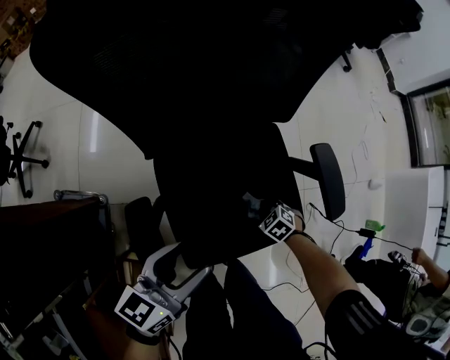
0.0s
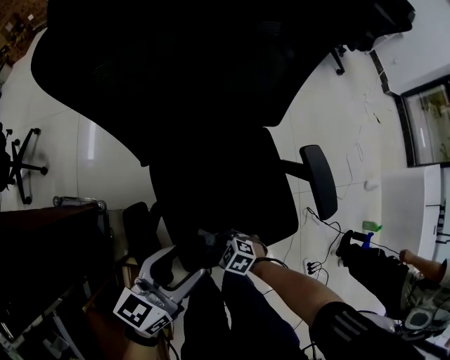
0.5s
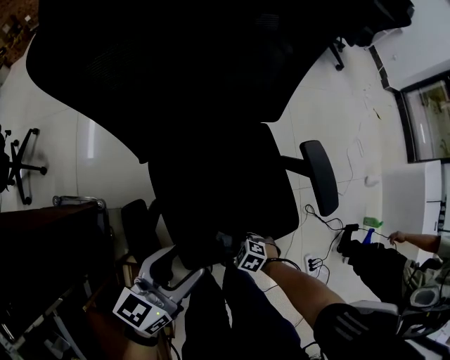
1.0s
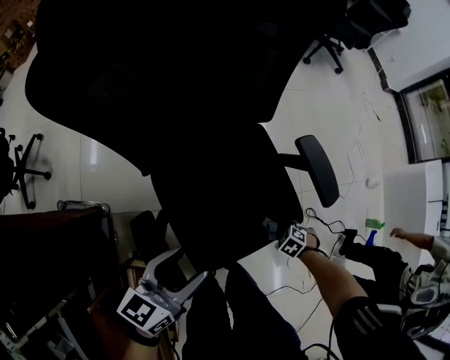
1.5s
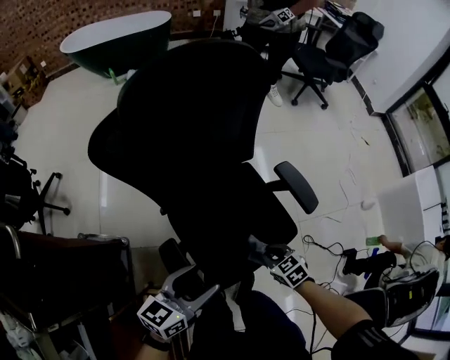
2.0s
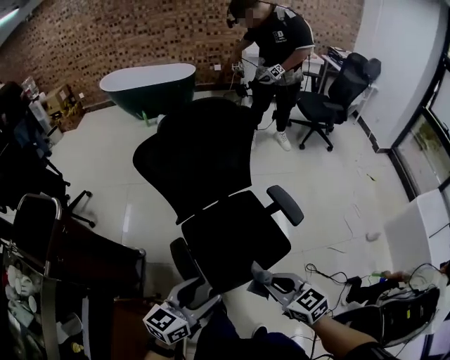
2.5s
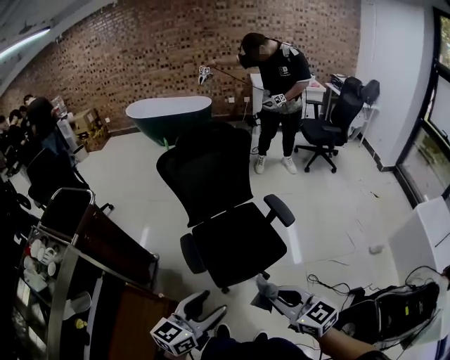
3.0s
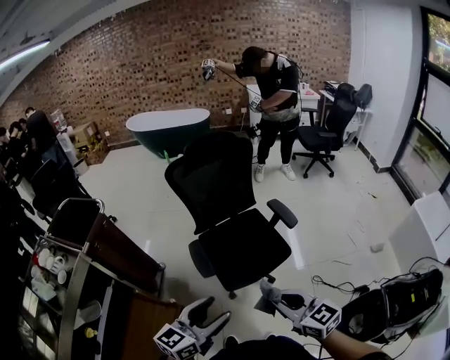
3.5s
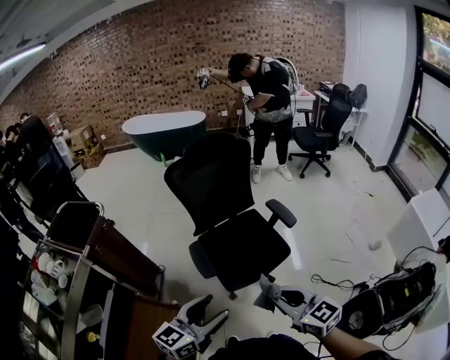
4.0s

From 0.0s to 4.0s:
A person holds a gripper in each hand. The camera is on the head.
From 0.0s to 2.0s: The left gripper is displaced upward by approximately 10 cm. The right gripper is displaced upward by roughly 25 cm, and swivels some 30 degrees.
From 2.0s to 4.0s: The right gripper goes about 60 cm upward, and tilts its fingers about 40 degrees upward. Meanwhile the left gripper moves upward and backward, some 40 cm.

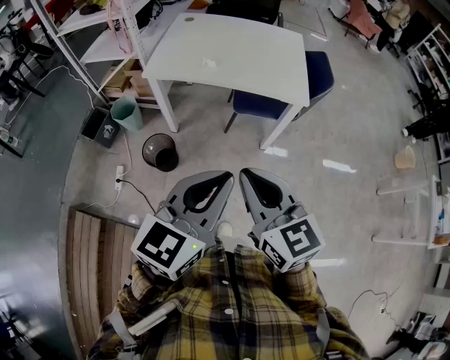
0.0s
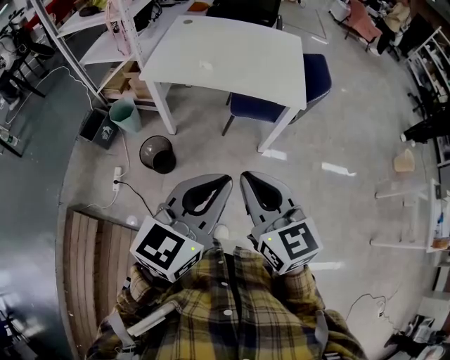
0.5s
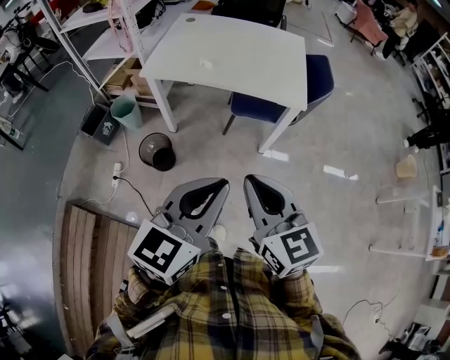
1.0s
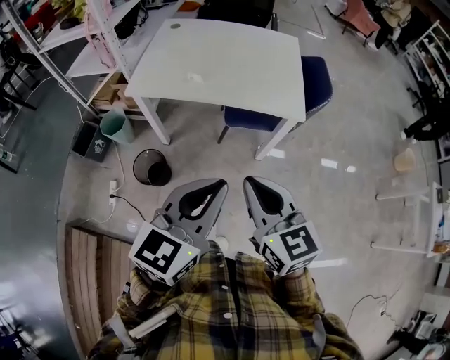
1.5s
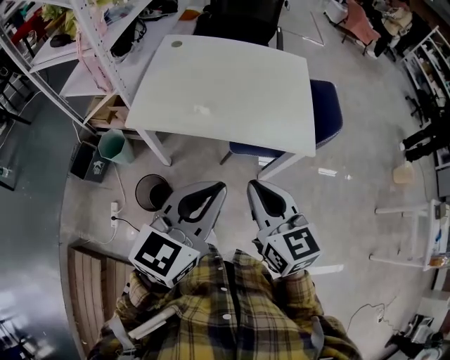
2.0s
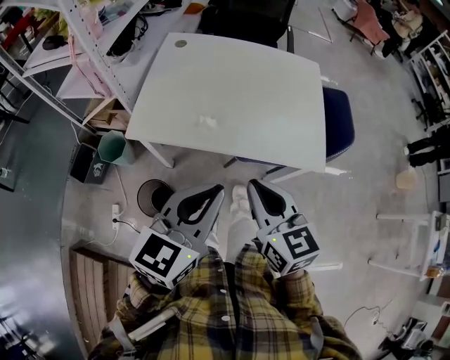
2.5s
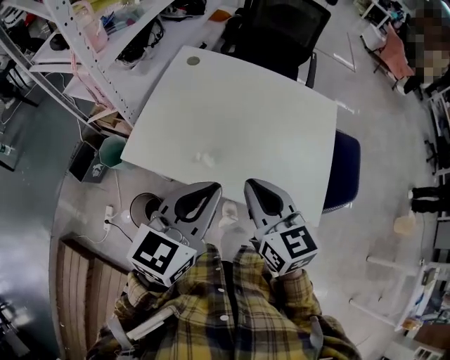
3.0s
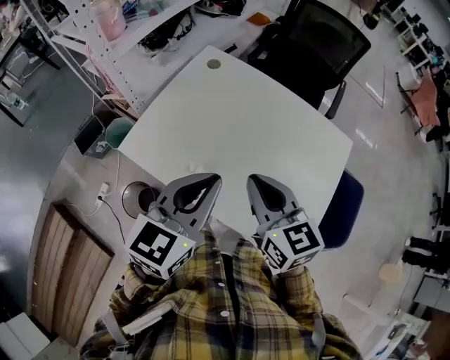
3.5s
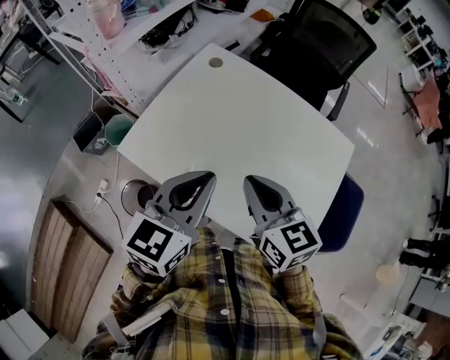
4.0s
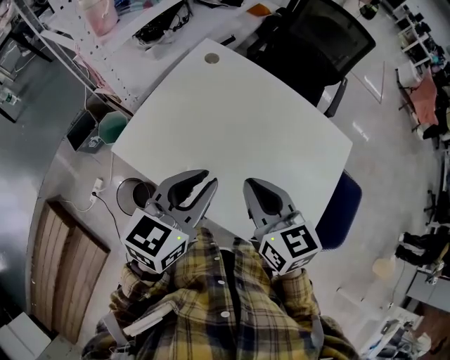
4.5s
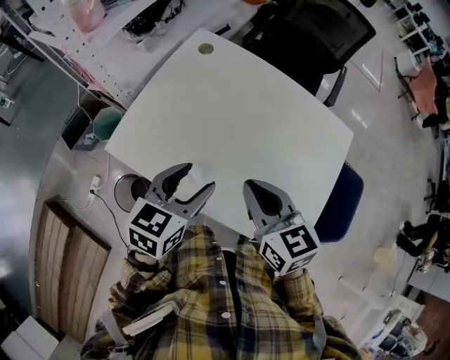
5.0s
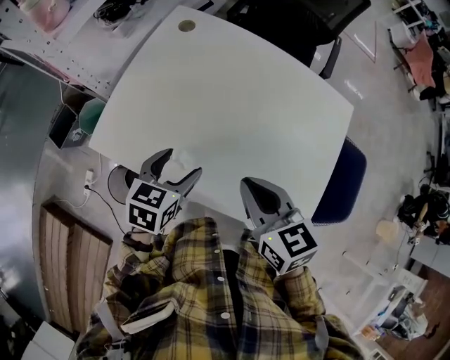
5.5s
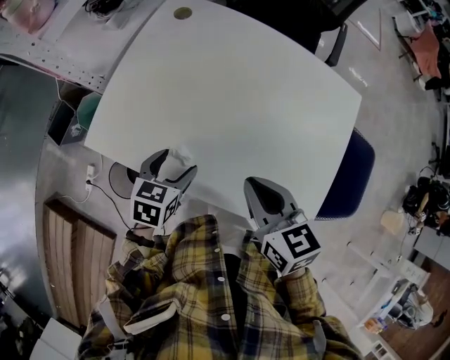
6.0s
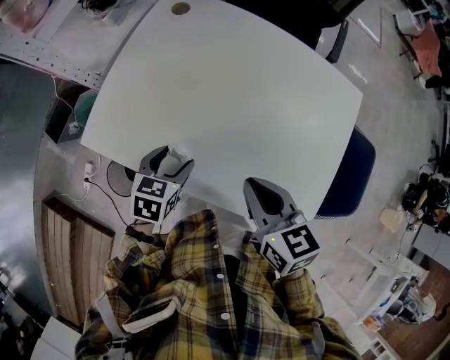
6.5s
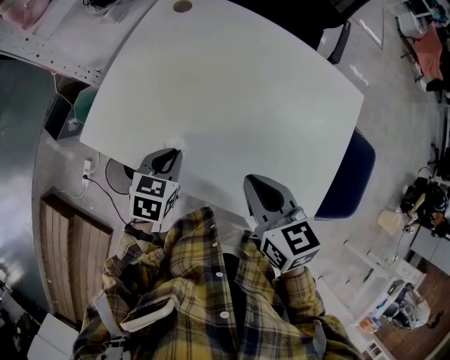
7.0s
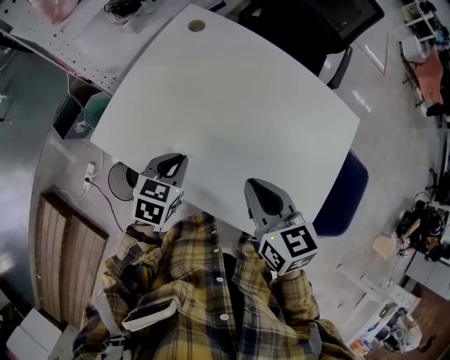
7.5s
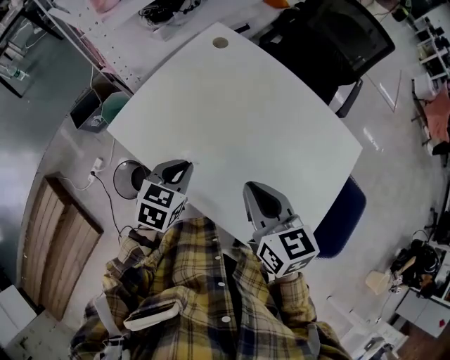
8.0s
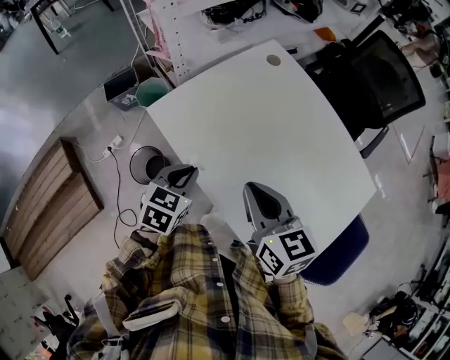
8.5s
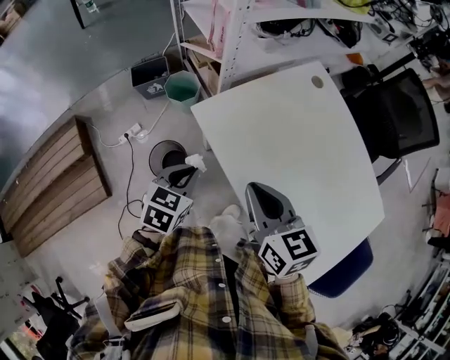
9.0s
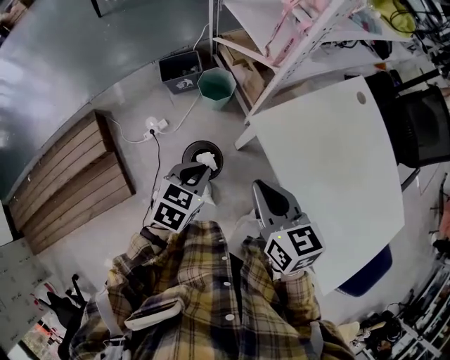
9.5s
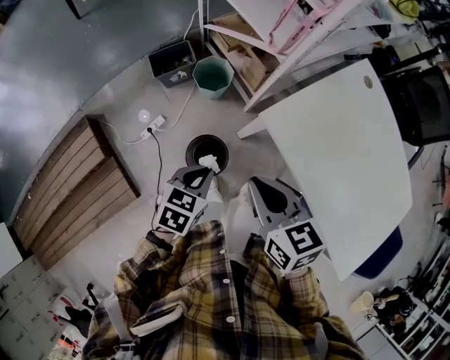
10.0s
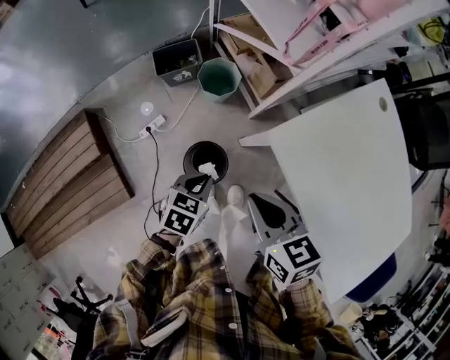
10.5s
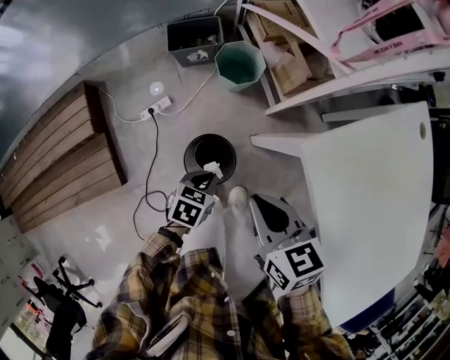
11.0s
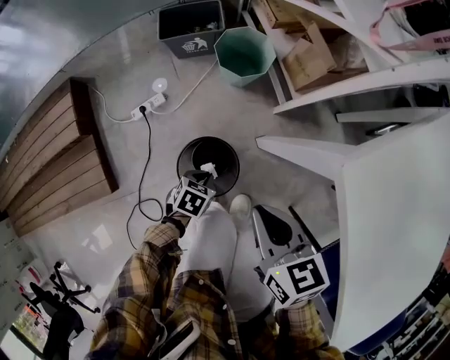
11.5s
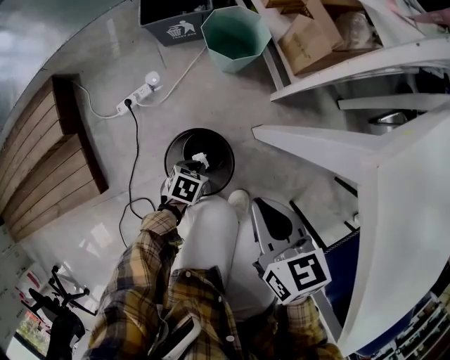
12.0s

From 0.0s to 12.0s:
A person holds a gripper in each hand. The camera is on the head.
From 0.0s to 2.0s: The two grippers go roughly 25 cm forward.
From 2.0s to 4.0s: The left gripper shifts by about 35 cm, and rotates approximately 30 degrees. Meanwhile the right gripper shifts by approximately 35 cm, and rotates some 30 degrees.
From 4.0s to 6.0s: The left gripper is displaced downward by roughly 25 cm, tilts its fingers about 30 degrees downward, and opens; the right gripper shifts some 10 cm downward.
From 6.0s to 8.0s: The left gripper moves upward, about 5 cm, and closes its fingers.
From 8.0s to 10.0s: The two grippers travel together, to the left, roughly 40 cm. The right gripper turns by roughly 20 degrees.
From 10.0s to 12.0s: Both grippers move downward, some 50 cm. The left gripper swivels approximately 30 degrees.

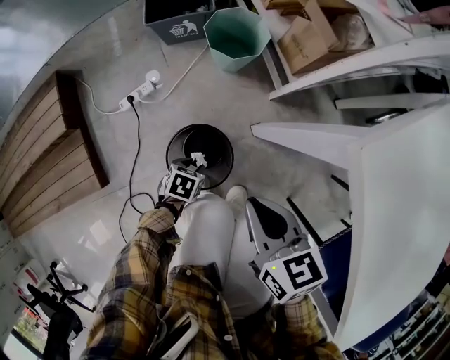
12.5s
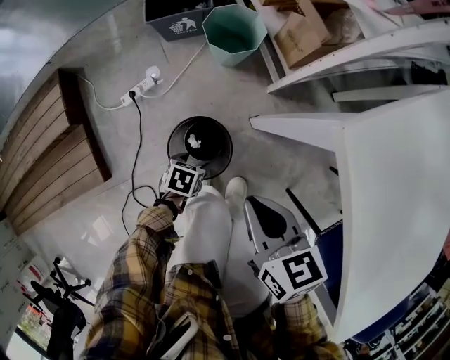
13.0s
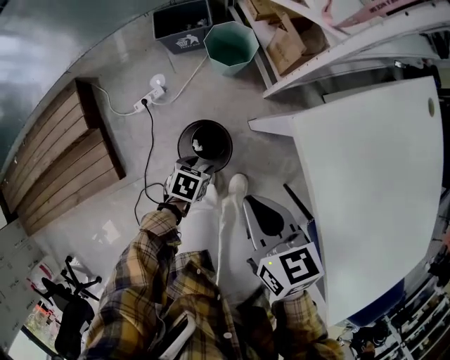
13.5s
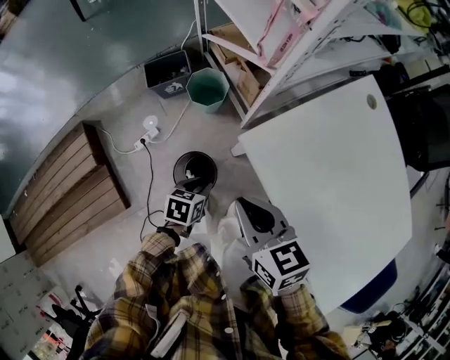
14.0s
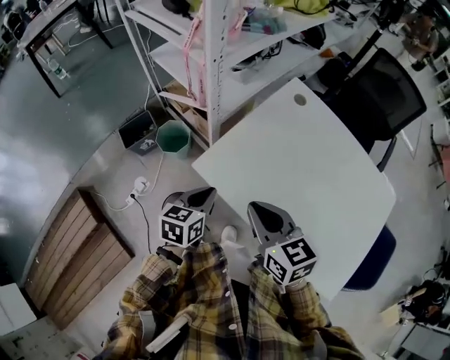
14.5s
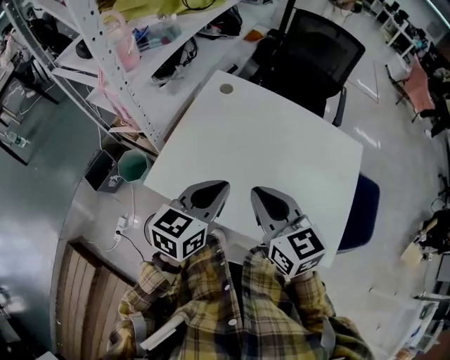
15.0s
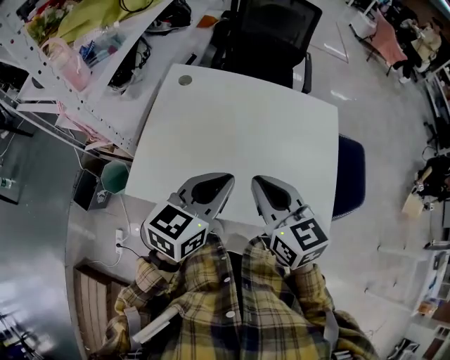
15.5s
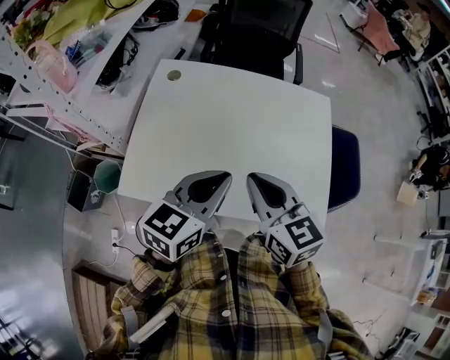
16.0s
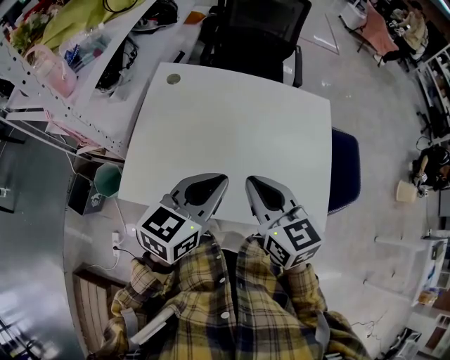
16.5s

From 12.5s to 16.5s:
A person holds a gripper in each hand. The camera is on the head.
From 12.5s to 14.5s: The left gripper shifts roughly 60 cm upward, points its fingers roughly 40 degrees further upward, and opens and closes again, while the right gripper shifts about 40 cm upward and to the right, and changes its angle by about 30 degrees.
From 14.5s to 16.5s: The left gripper shifts by roughly 30 cm, and swivels some 50 degrees, while the right gripper ends up approximately 25 cm from where it was, and changes its angle by roughly 40 degrees.

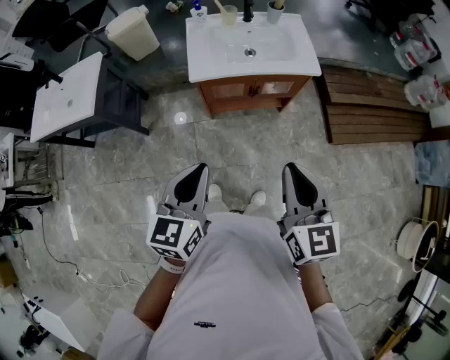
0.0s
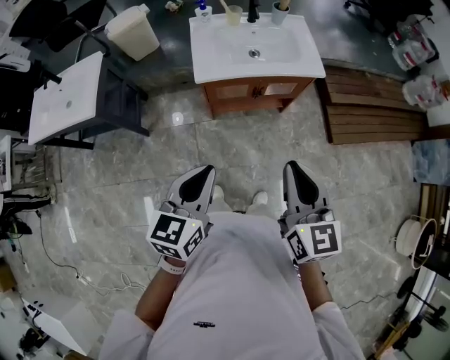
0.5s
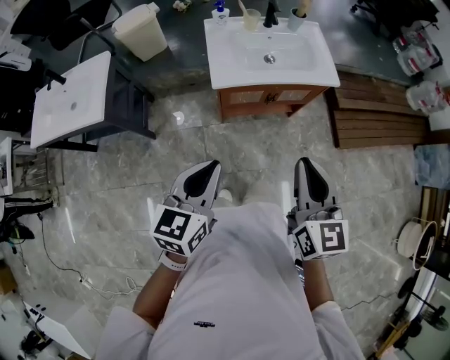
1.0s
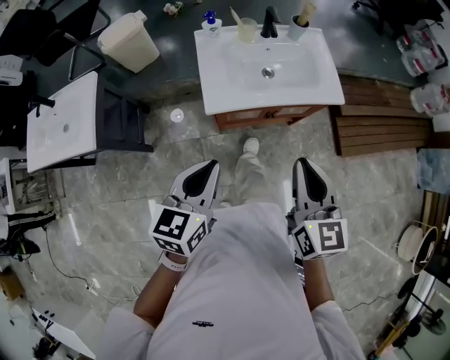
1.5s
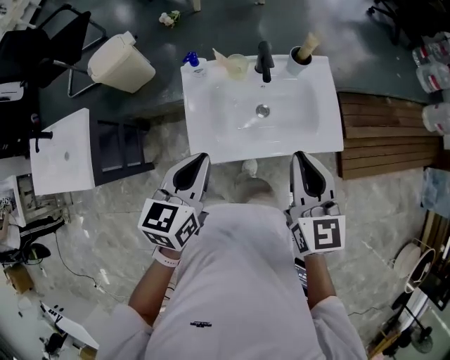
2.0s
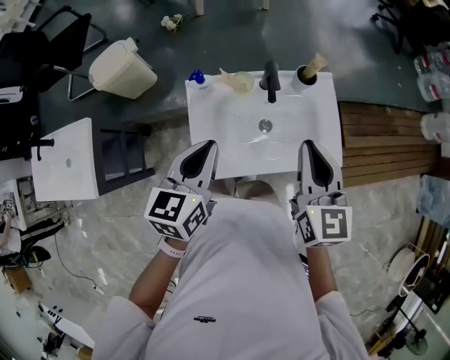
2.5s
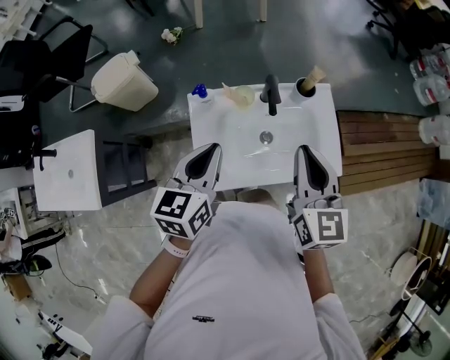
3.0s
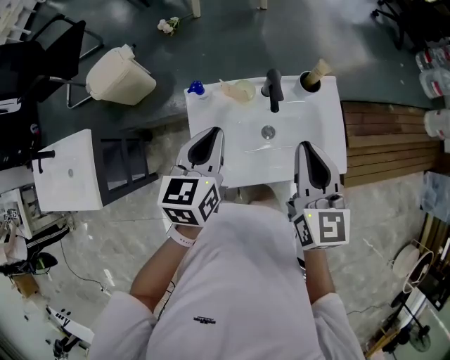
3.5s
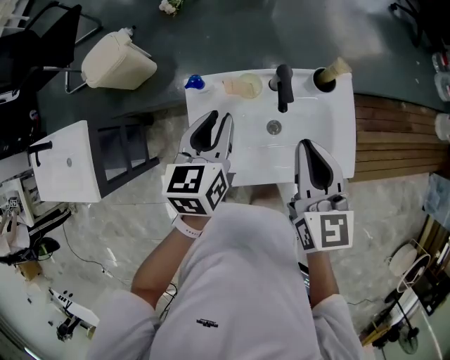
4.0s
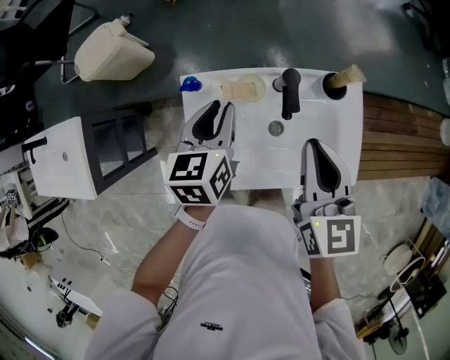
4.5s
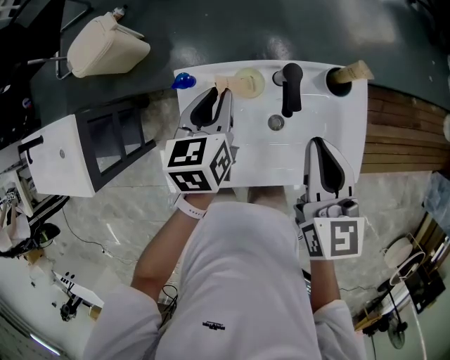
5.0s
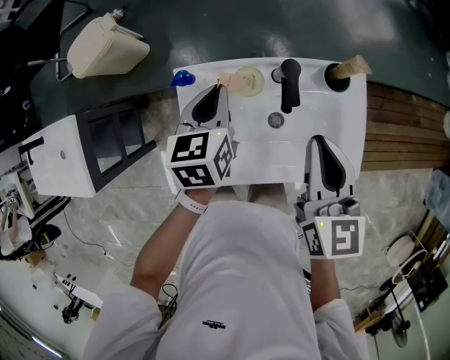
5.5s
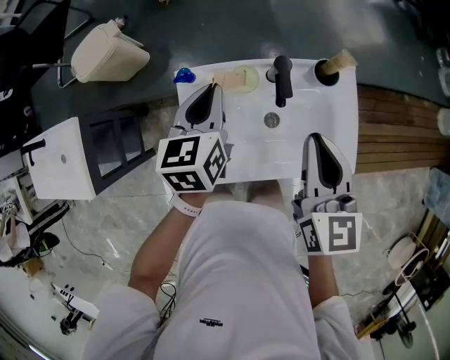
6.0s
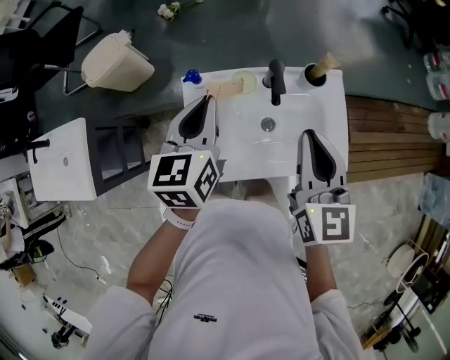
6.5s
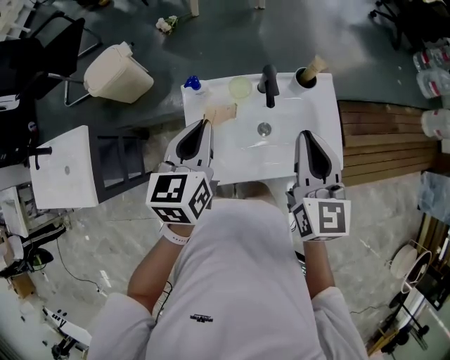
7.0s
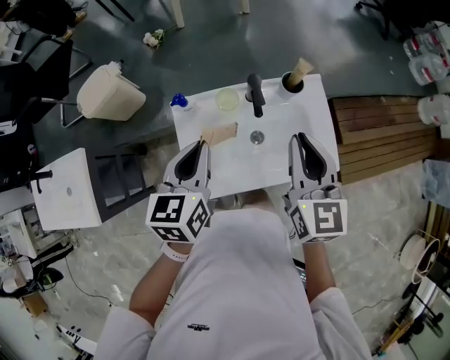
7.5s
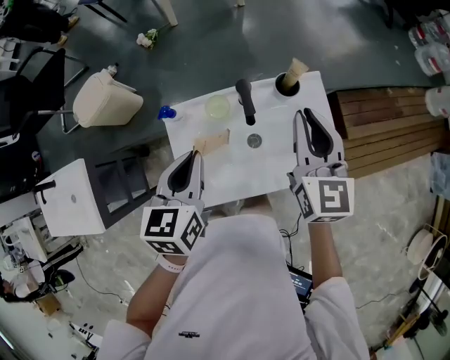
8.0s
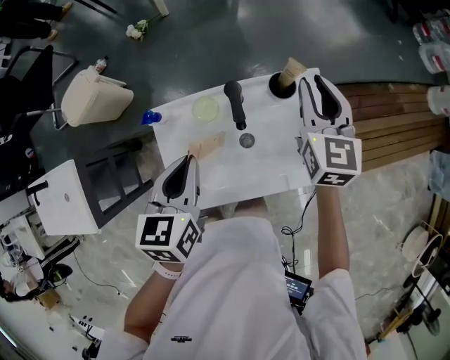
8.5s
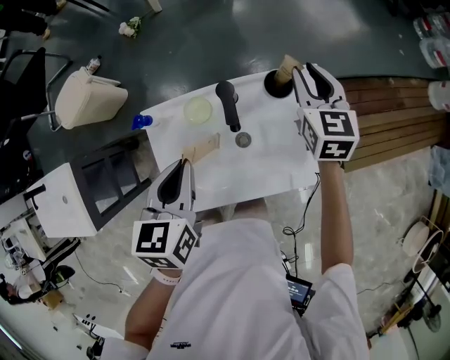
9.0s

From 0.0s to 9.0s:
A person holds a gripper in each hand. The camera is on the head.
From 0.0s to 2.0s: The pair of grippers is taken forward, approximately 40 cm.
From 2.0s to 4.5s: Both grippers move forward, roughly 20 cm.
From 4.5s to 7.0s: The right gripper moves backward and upward, roughly 10 cm. The left gripper goes about 15 cm upward and backward.
From 7.0s to 9.0s: The left gripper heads downward and to the right, covering approximately 10 cm; the right gripper is displaced forward, downward and to the right by approximately 30 cm.
